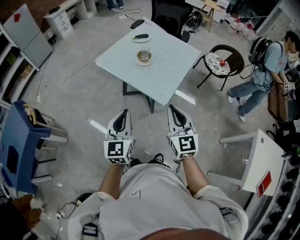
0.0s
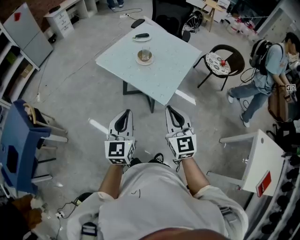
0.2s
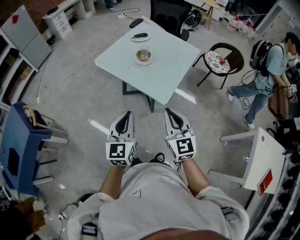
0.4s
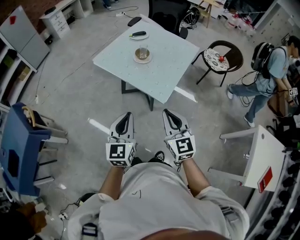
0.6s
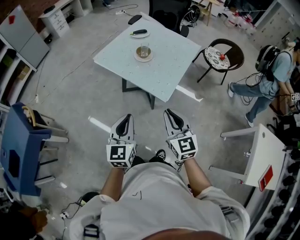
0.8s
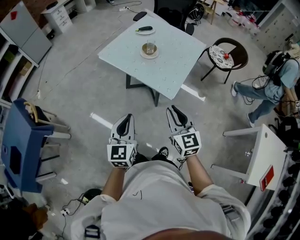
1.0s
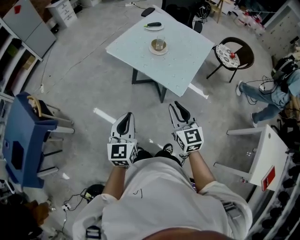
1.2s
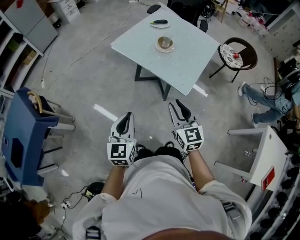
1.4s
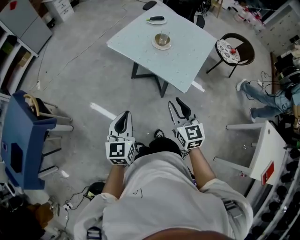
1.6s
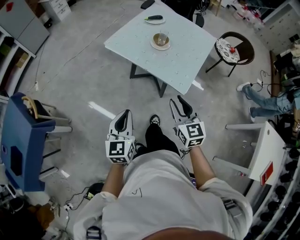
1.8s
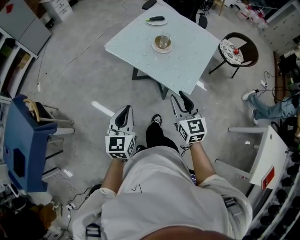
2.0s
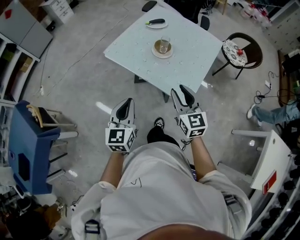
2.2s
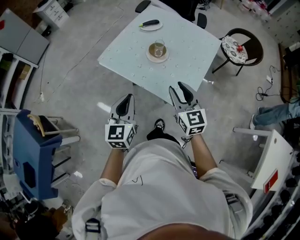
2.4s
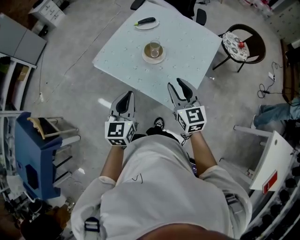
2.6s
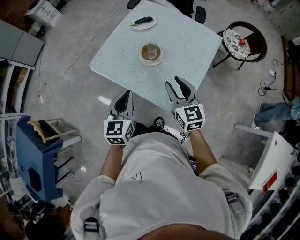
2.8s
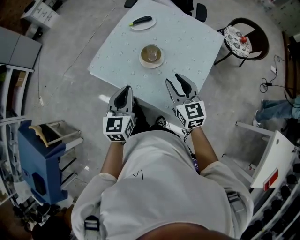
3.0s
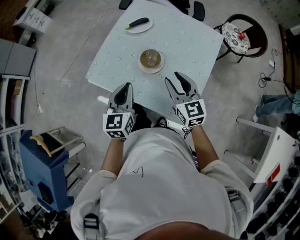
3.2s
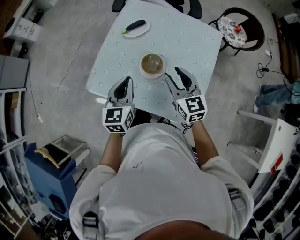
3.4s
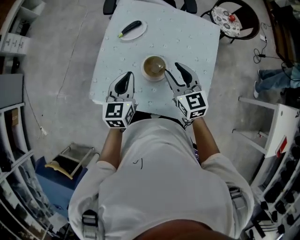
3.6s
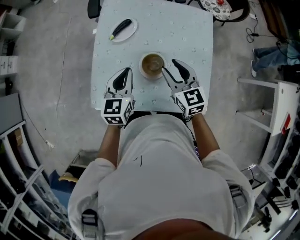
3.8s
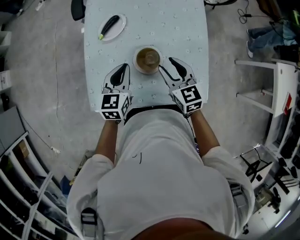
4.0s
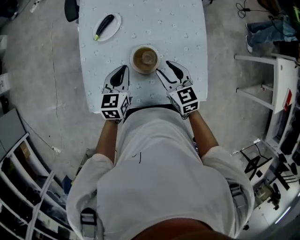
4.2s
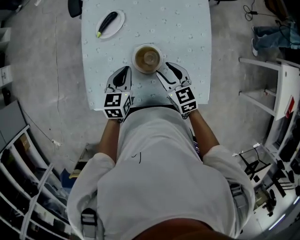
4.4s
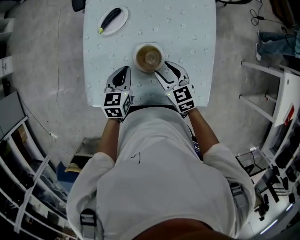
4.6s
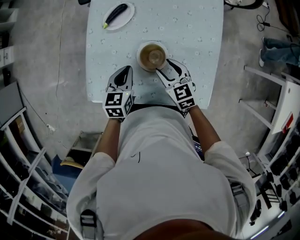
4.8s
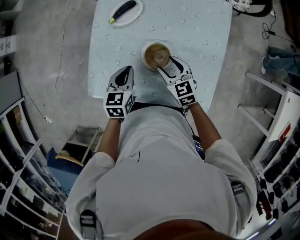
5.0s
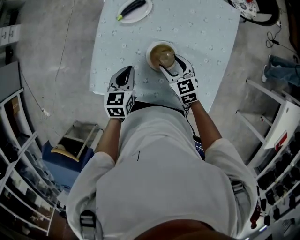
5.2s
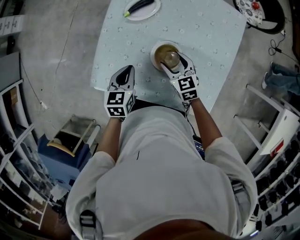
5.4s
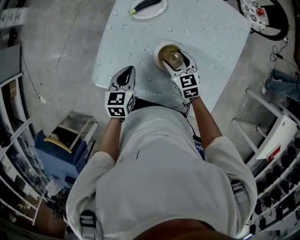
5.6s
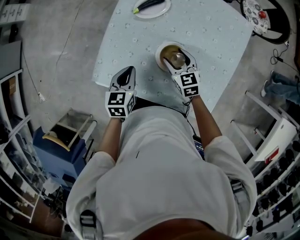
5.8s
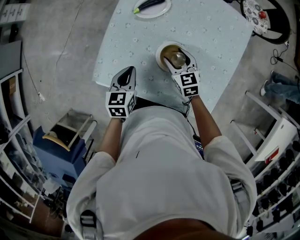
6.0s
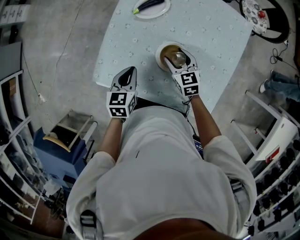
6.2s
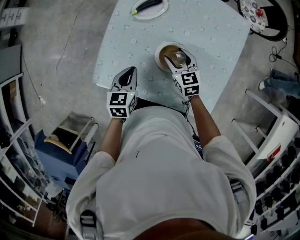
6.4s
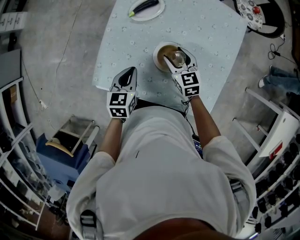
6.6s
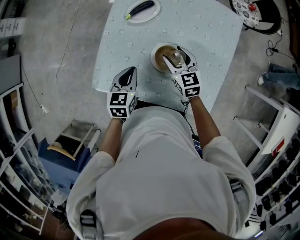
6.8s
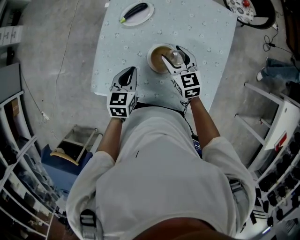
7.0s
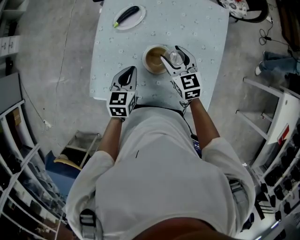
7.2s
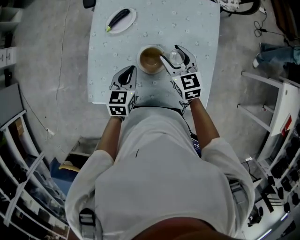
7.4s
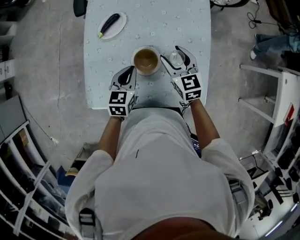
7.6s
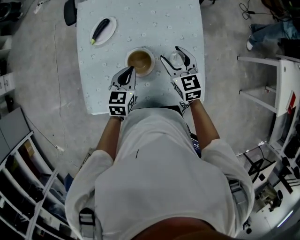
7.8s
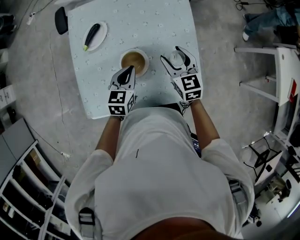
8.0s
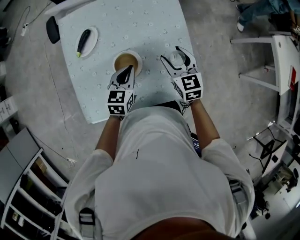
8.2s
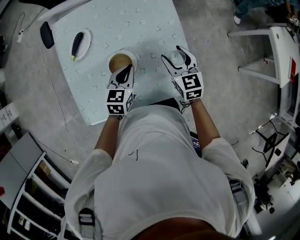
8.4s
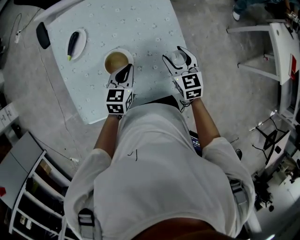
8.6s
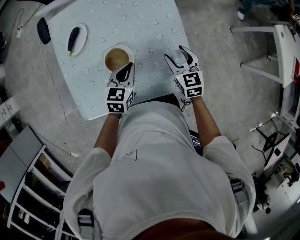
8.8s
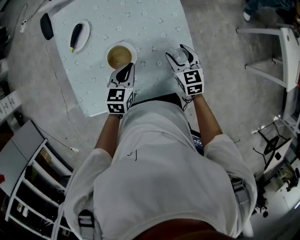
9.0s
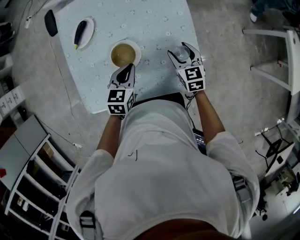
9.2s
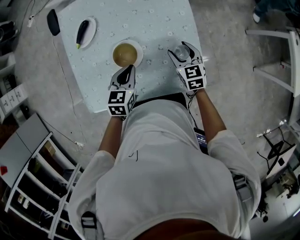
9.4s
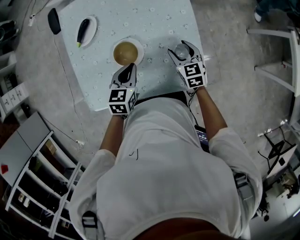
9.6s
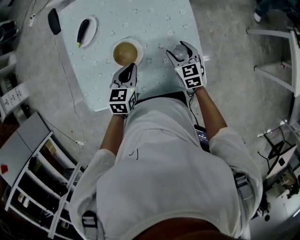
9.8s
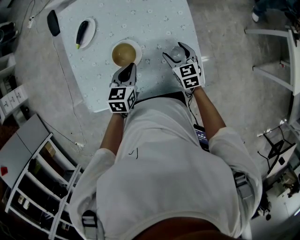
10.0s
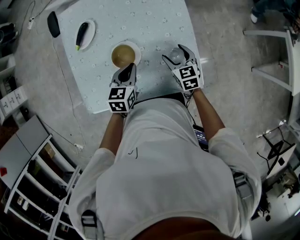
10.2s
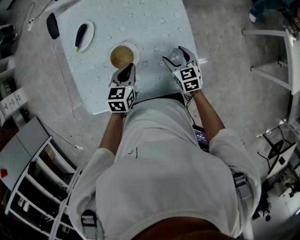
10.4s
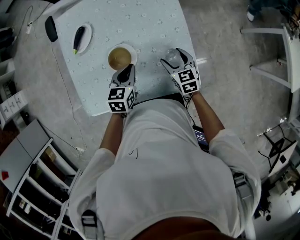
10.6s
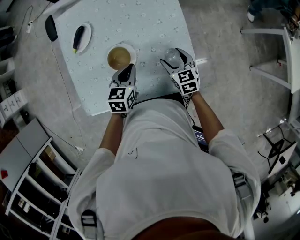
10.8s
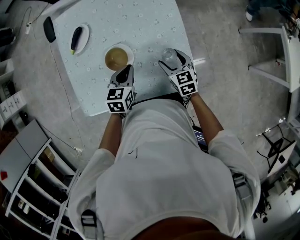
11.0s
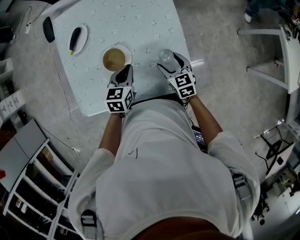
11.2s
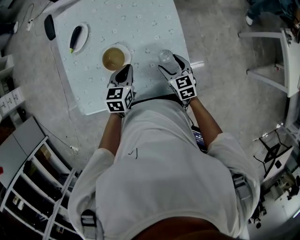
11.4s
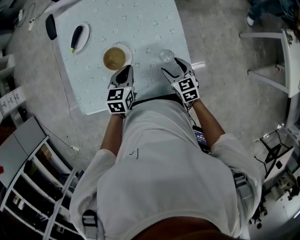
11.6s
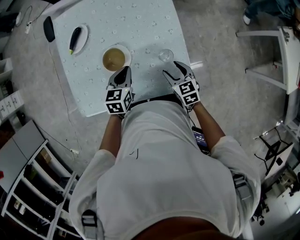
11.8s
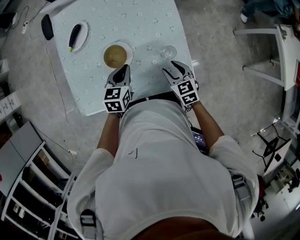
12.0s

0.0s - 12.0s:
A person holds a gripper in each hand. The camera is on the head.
0.0s - 1.6s: Both grippers travel together to the left and downward, about 15 cm. The right gripper opens.
1.6s - 3.0s: The grippers both shift forward by some 35 cm.
3.0s - 4.4s: The left gripper moves about 25 cm, and turns by roughly 40 degrees. The right gripper shifts by approximately 20 cm, and rotates some 30 degrees.
4.4s - 6.0s: The right gripper is displaced downward, forward and to the left by approximately 15 cm, while the left gripper goes approximately 10 cm to the left, and turns by approximately 20 degrees.
6.0s - 7.6s: The right gripper heads upward and to the right, covering approximately 15 cm, and swivels approximately 20 degrees. Meanwhile the left gripper is displaced to the right by roughly 10 cm, and rotates approximately 20 degrees.
7.6s - 9.0s: The left gripper heads to the right, covering roughly 10 cm, while the right gripper goes roughly 20 cm to the right and downward.
9.0s - 10.4s: The grippers make only small movements.
10.4s - 12.0s: The right gripper goes some 5 cm backward, and closes up.

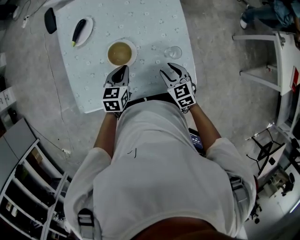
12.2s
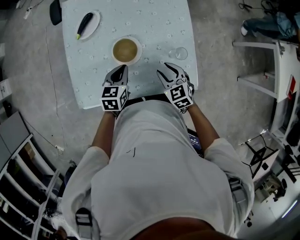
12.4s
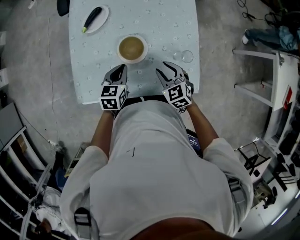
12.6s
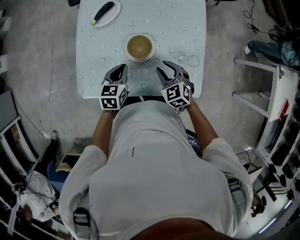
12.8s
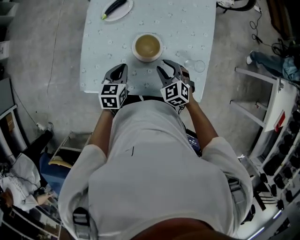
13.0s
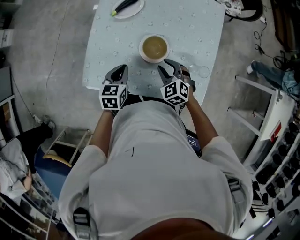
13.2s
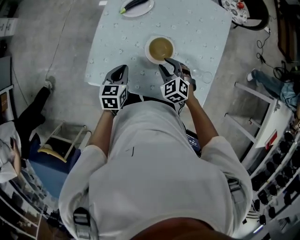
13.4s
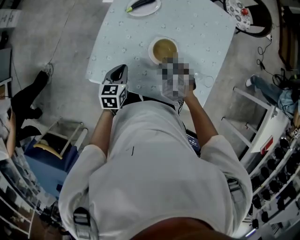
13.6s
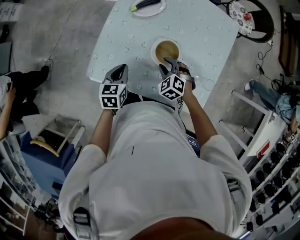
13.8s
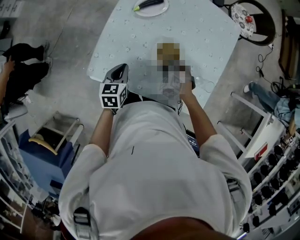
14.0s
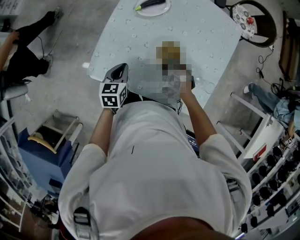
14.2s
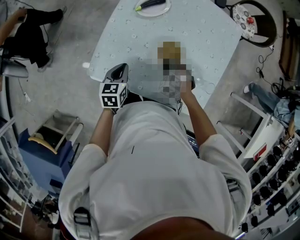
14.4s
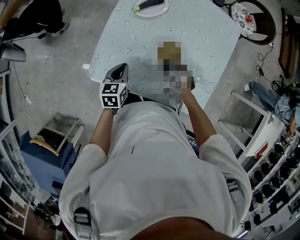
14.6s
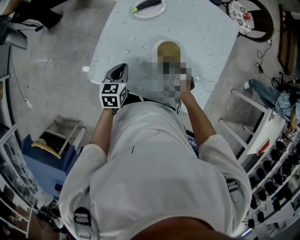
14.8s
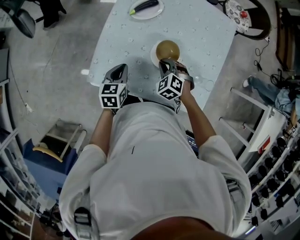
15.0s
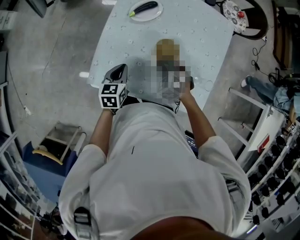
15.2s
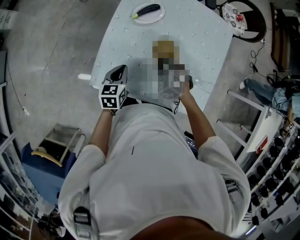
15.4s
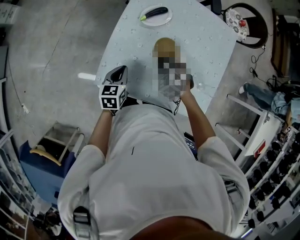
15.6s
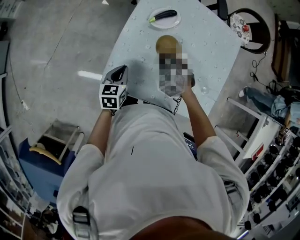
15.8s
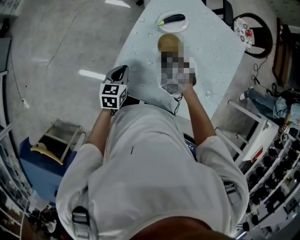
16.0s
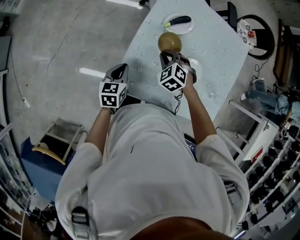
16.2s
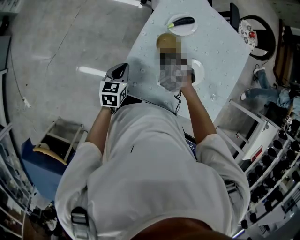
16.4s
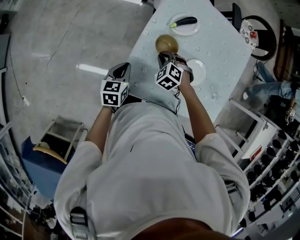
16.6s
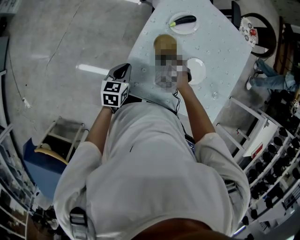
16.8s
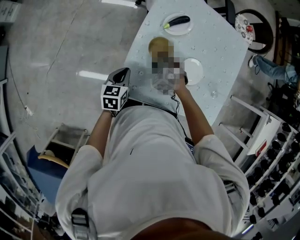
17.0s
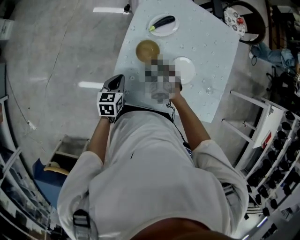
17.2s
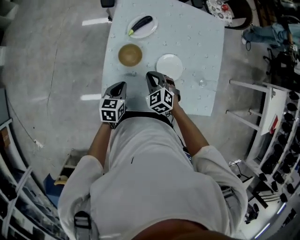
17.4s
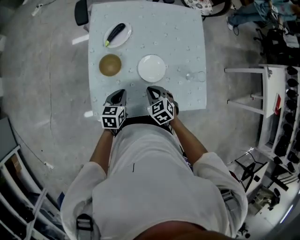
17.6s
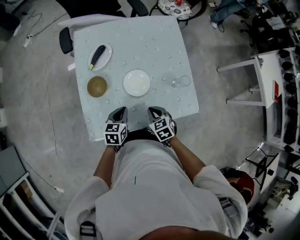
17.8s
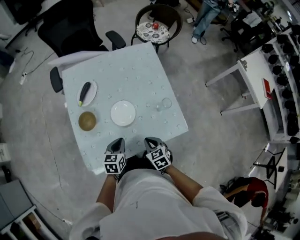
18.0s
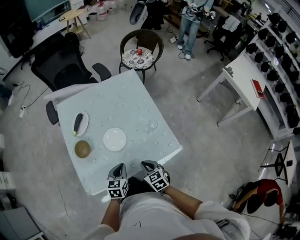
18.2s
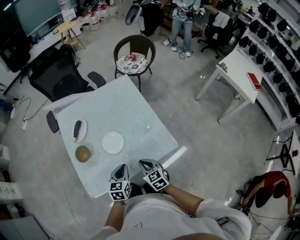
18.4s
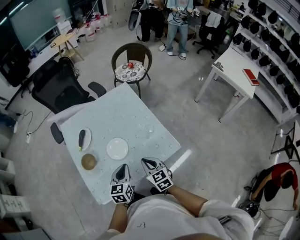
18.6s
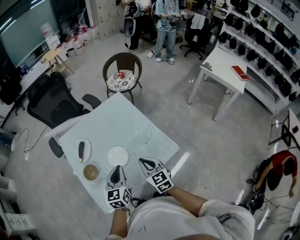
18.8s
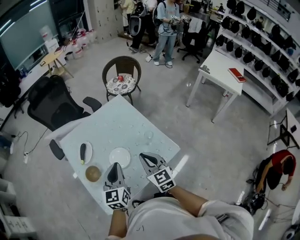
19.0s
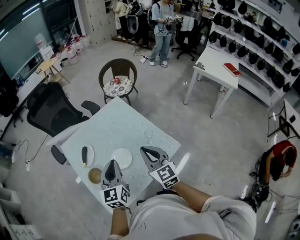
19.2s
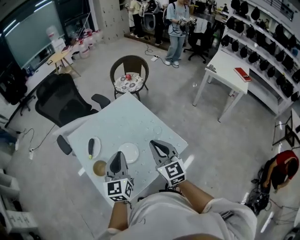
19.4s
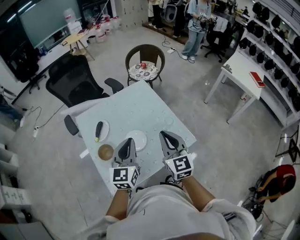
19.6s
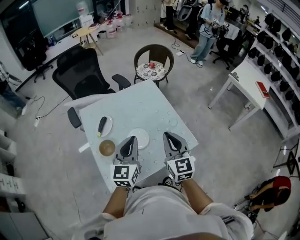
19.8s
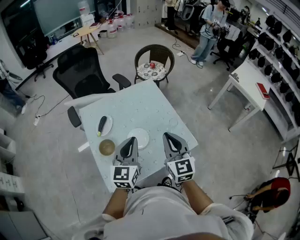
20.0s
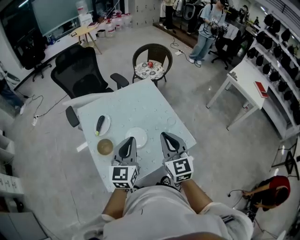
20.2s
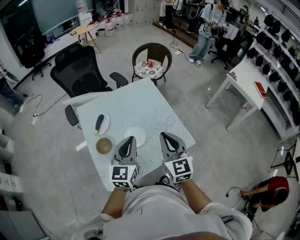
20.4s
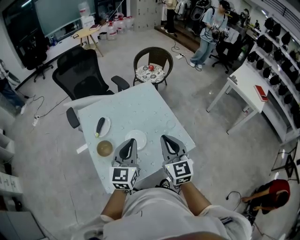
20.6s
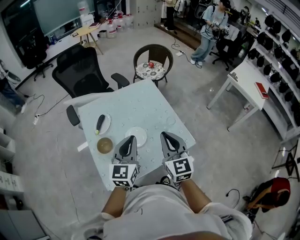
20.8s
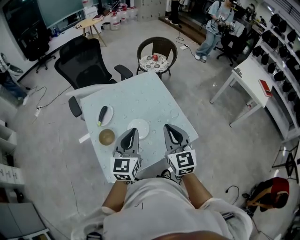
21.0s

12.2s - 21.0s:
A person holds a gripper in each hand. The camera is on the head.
12.2s - 13.6s: Both grippers travel together to the left, roughly 20 cm. The right gripper rotates around the line of its fingers by some 50 degrees, counterclockwise from behind; the left gripper rotates roughly 30 degrees.
13.6s - 15.2s: The right gripper changes place by some 5 cm, and closes its fingers.
15.2s - 16.6s: The right gripper heads to the left and forward, covering approximately 20 cm. The left gripper shifts some 15 cm to the left.
16.6s - 18.0s: The left gripper ends up roughly 30 cm from where it was, and turns by approximately 30 degrees; the right gripper changes place by roughly 35 cm, rolls clockwise, seen from behind, by some 70 degrees, and opens and closes again.
18.0s - 19.6s: The two grippers go roughly 30 cm upward. The right gripper tips its fingers upward by about 40 degrees. The left gripper tilts its fingers approximately 30 degrees upward.
19.6s - 21.0s: The grippers stay close to where they were, moving slightly.

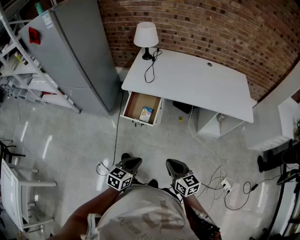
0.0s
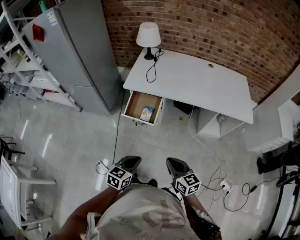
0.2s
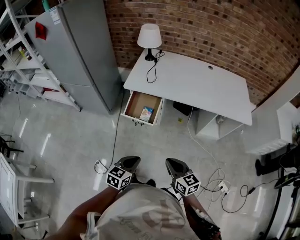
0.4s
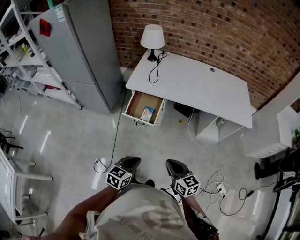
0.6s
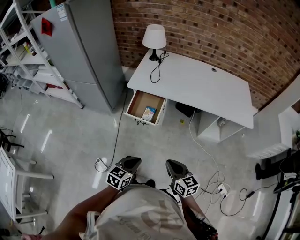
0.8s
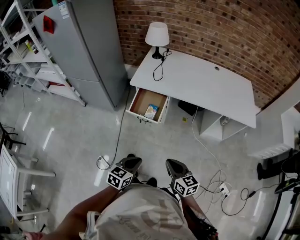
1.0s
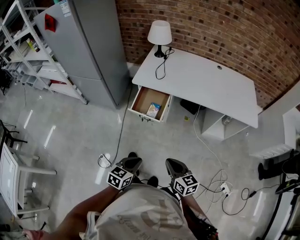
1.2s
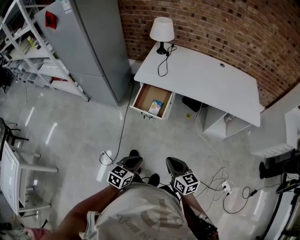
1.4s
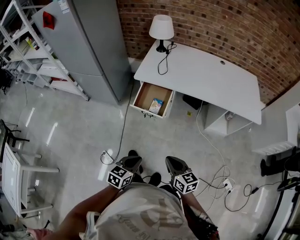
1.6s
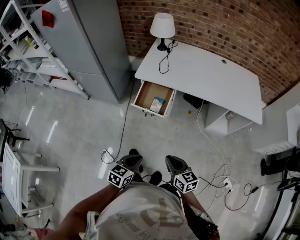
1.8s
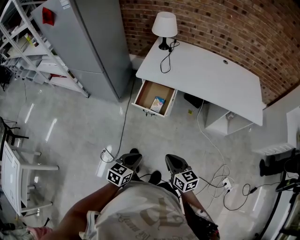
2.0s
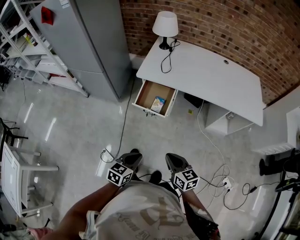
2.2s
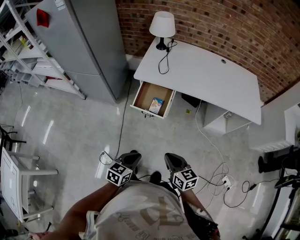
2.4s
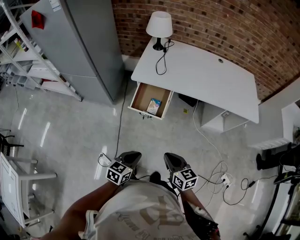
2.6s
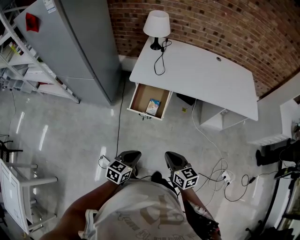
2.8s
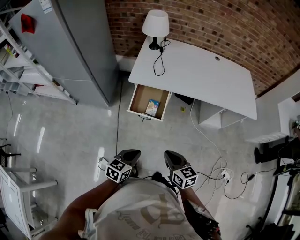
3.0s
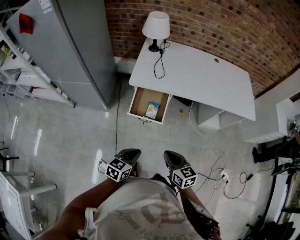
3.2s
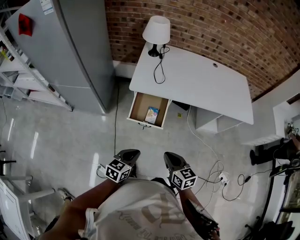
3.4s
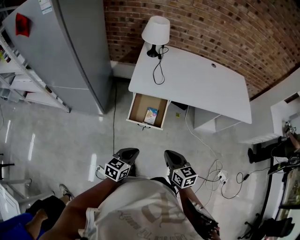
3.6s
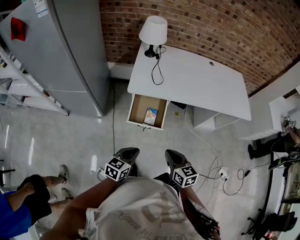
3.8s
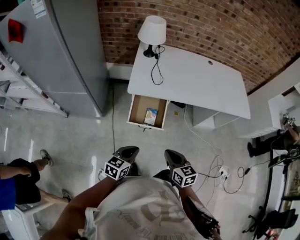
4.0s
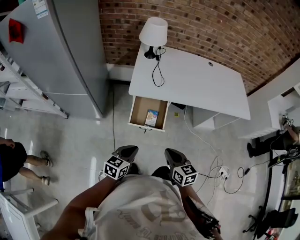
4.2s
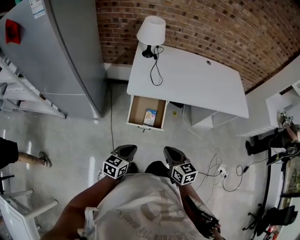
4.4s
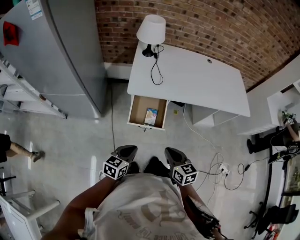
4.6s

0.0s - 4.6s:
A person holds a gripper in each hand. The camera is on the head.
0.0s - 1.6s: The left gripper moves backward, about 5 cm, while the right gripper changes place by approximately 5 cm.
1.6s - 3.0s: Both grippers travel together forward and to the left, approximately 10 cm.
3.0s - 4.6s: Both grippers travel together to the left and forward, about 15 cm.
